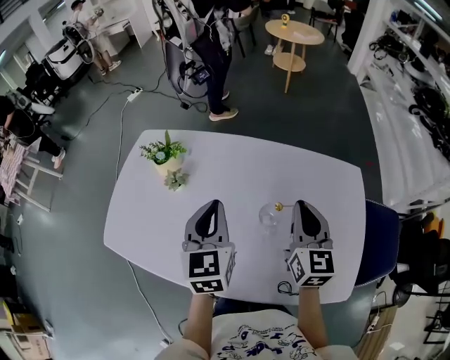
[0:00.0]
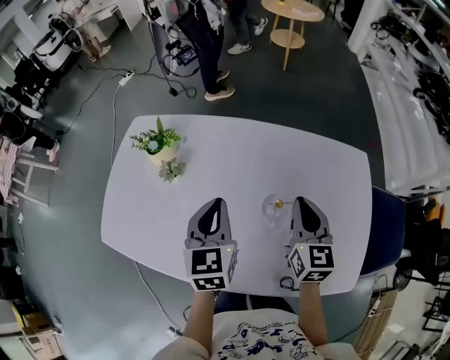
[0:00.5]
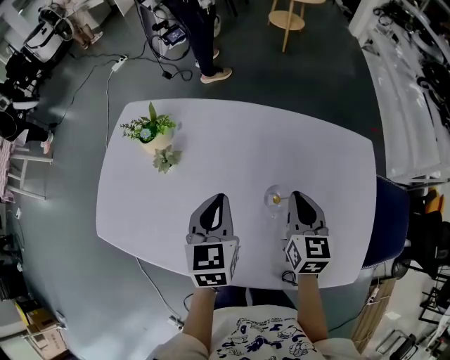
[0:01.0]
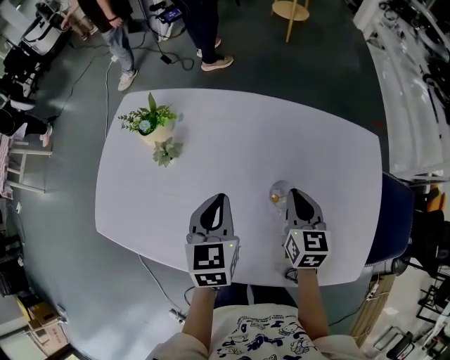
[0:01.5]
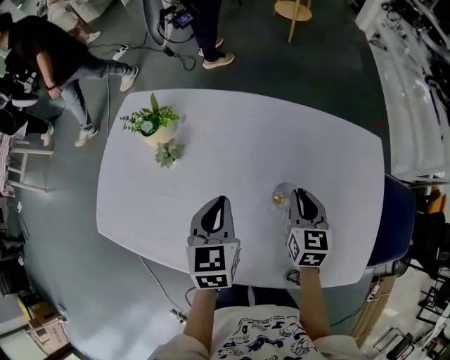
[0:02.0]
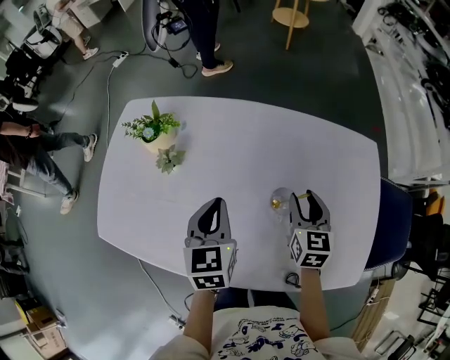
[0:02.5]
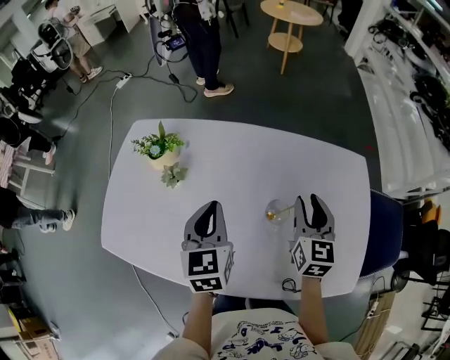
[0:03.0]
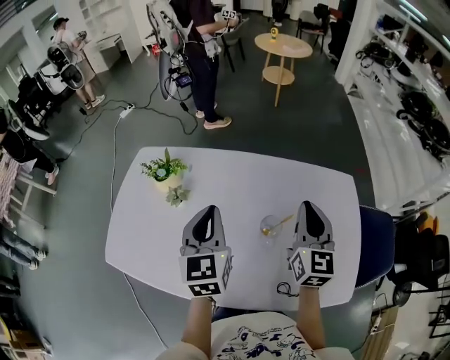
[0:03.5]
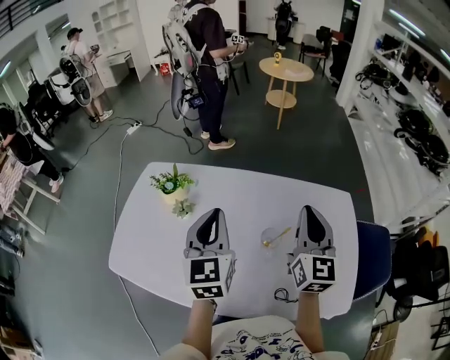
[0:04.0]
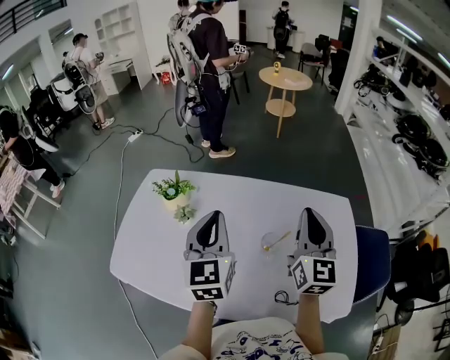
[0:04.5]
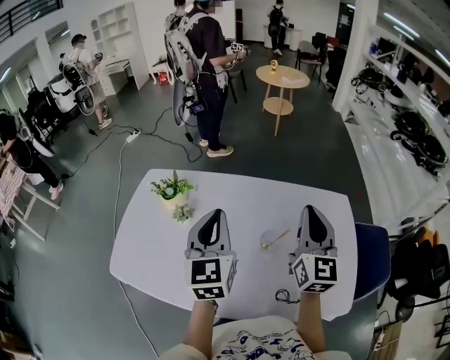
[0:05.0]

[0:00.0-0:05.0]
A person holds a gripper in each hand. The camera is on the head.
0:00.0 to 0:02.5: The two grippers go about 15 cm downward. The right gripper opens its fingers.
0:02.5 to 0:05.0: Both grippers move upward, some 25 cm. The right gripper tips its fingers upward by approximately 30 degrees, and closes its fingers. The left gripper turns by roughly 30 degrees.

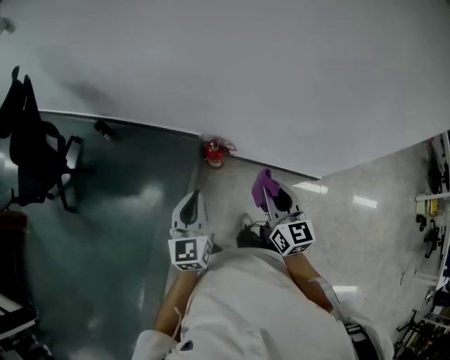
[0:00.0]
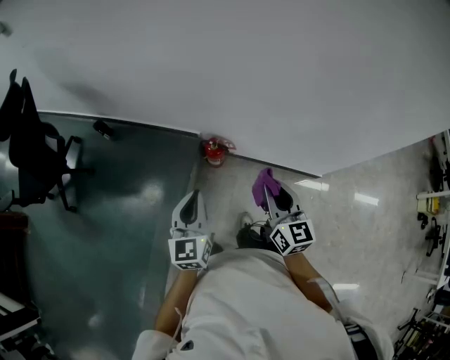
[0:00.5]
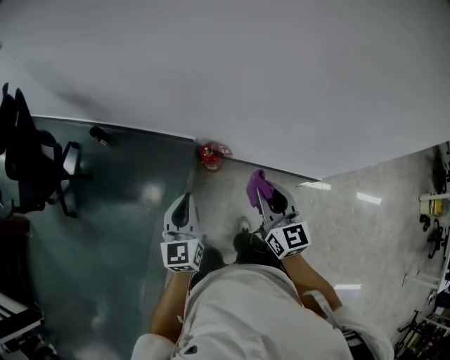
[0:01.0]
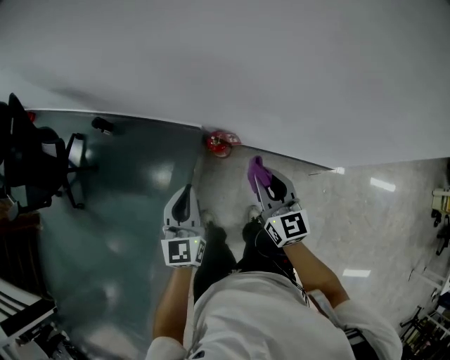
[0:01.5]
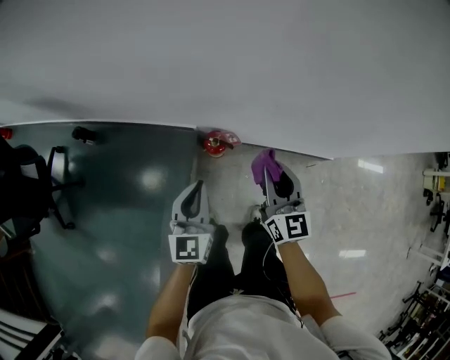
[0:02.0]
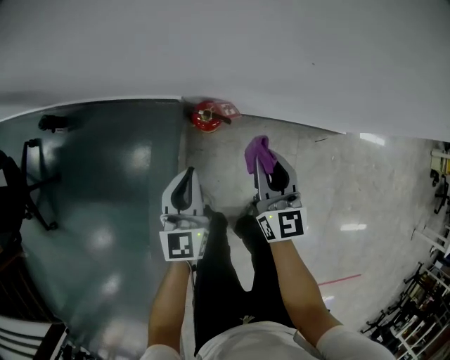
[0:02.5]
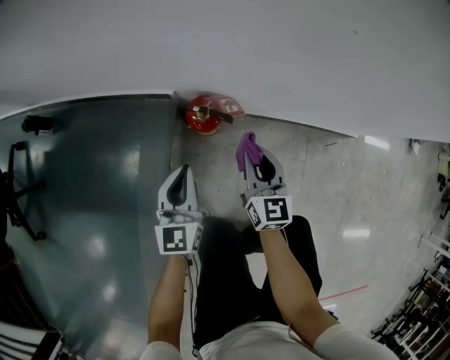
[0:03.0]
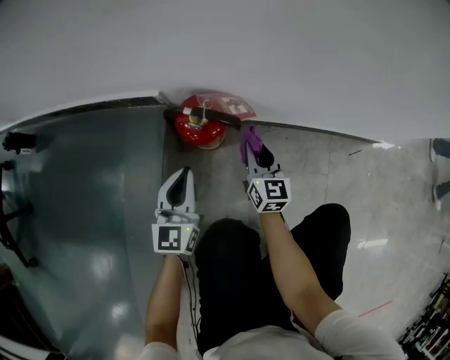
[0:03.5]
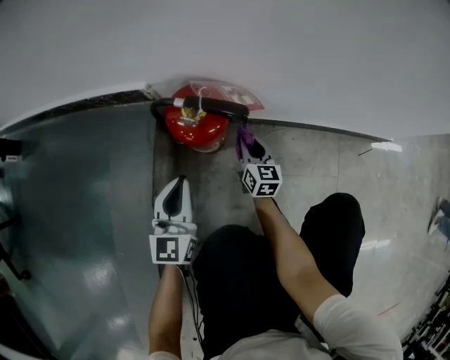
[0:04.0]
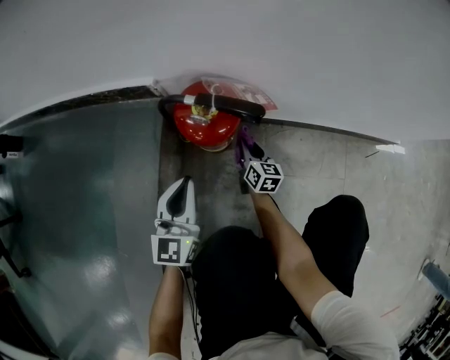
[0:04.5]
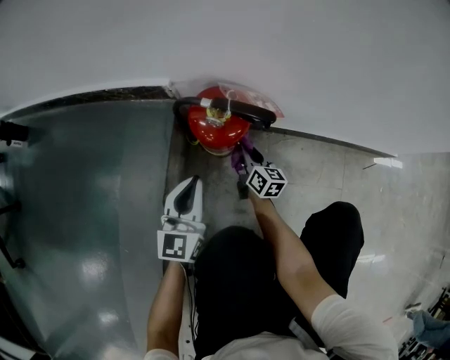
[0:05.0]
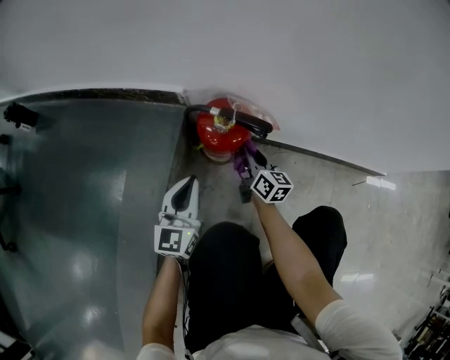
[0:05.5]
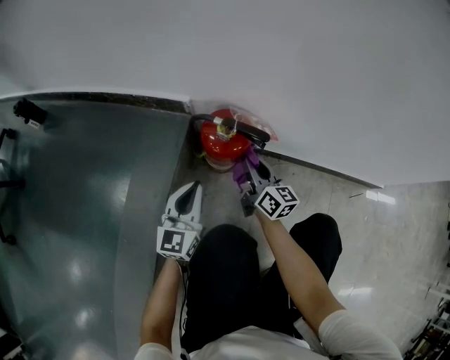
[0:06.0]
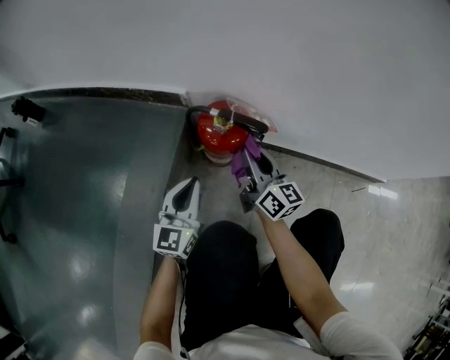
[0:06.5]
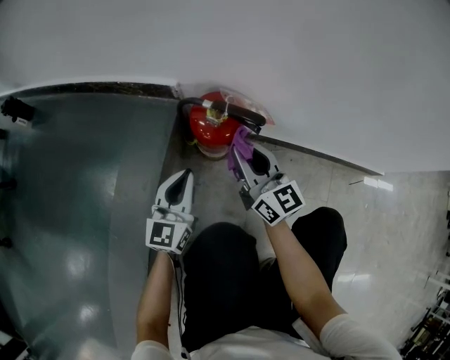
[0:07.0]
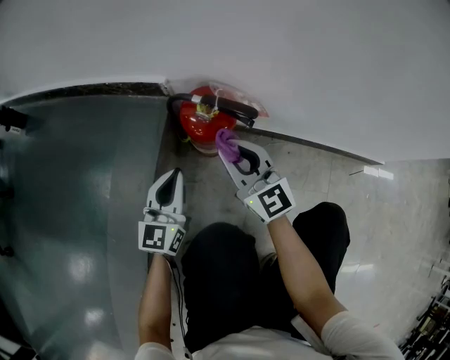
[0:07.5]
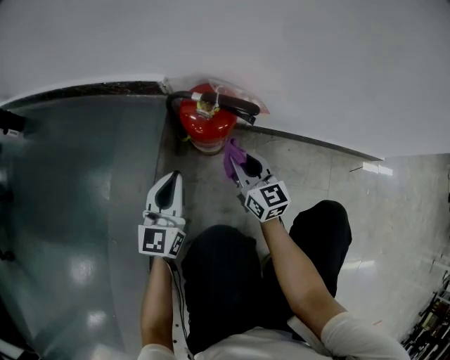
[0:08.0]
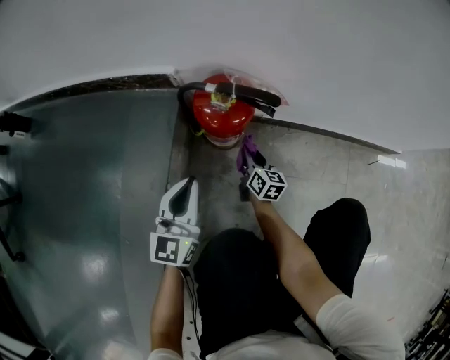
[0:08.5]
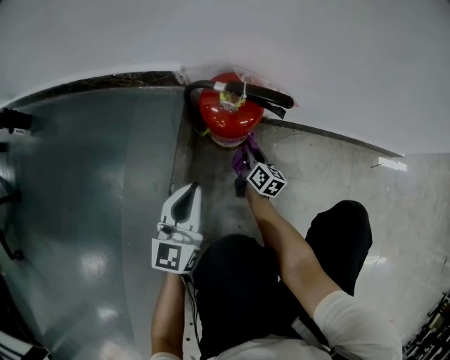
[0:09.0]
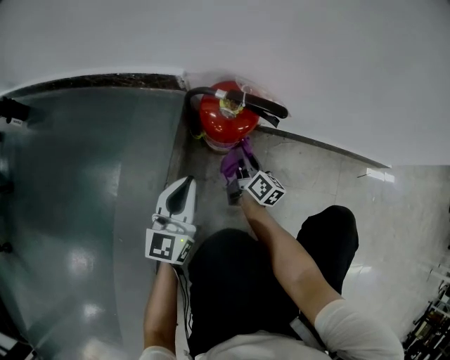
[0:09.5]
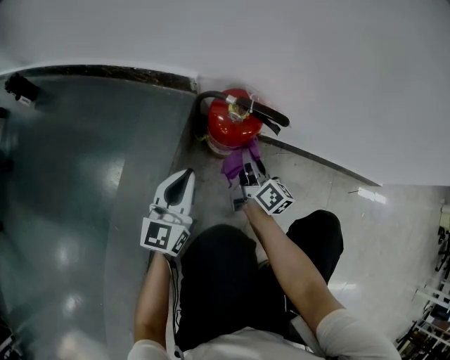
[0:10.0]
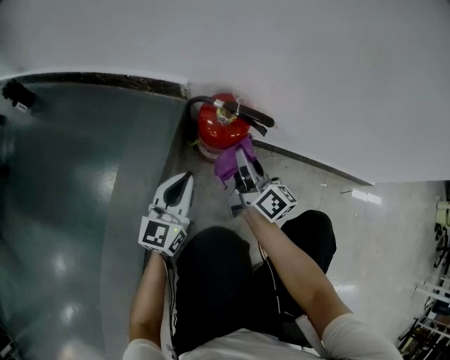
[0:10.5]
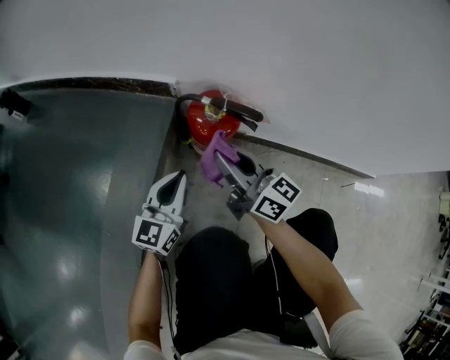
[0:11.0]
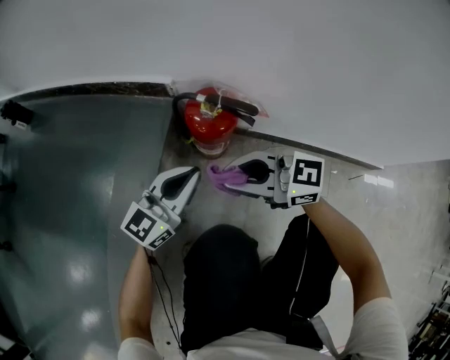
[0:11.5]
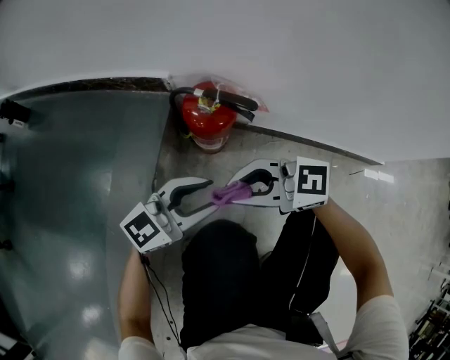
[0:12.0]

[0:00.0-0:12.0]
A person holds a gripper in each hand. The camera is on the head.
0:00.0 to 0:02.0: The two grippers go approximately 20 cm forward and downward.
0:02.0 to 0:04.0: Both grippers travel together downward, roughly 70 cm.
0:04.0 to 0:06.0: The right gripper is displaced upward by about 15 cm, and changes its angle by some 30 degrees.
0:06.0 to 0:08.0: The right gripper travels upward and back again, some 10 cm each way, and swivels approximately 20 degrees.
0:08.0 to 0:10.0: The right gripper goes downward and returns, about 20 cm each way, and changes its angle by roughly 40 degrees.
0:10.0 to 0:12.0: The left gripper ends up about 15 cm from where it was, changes its angle by approximately 50 degrees, and opens its fingers, while the right gripper moves upward, some 15 cm, and turns by approximately 90 degrees.

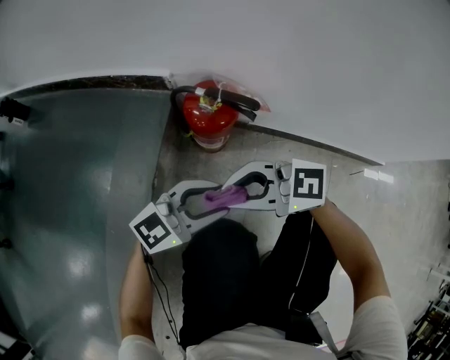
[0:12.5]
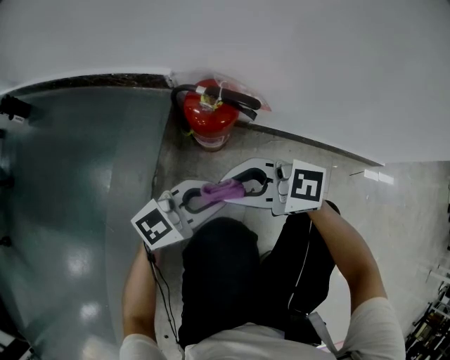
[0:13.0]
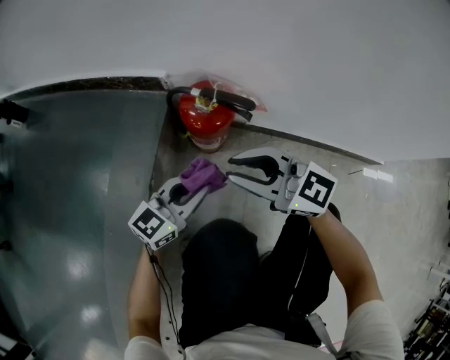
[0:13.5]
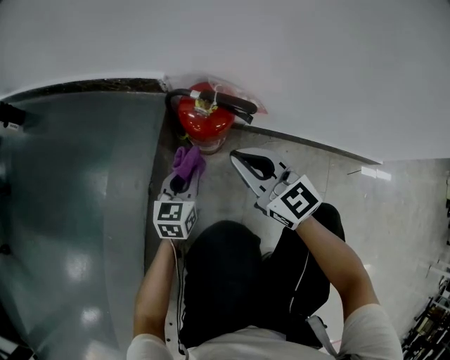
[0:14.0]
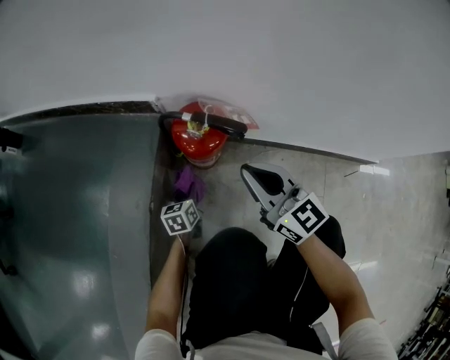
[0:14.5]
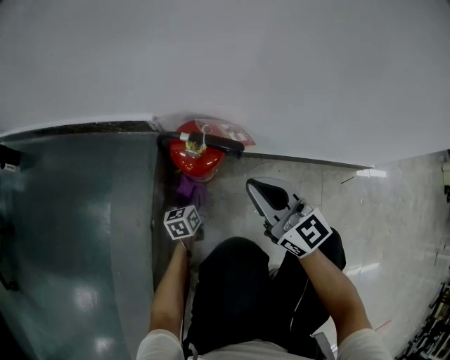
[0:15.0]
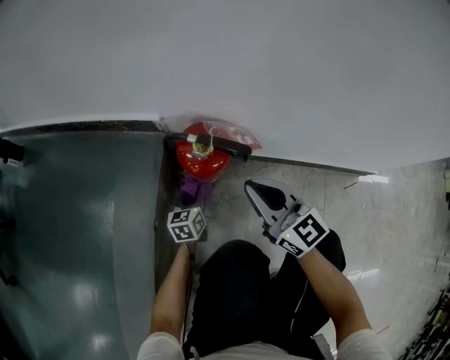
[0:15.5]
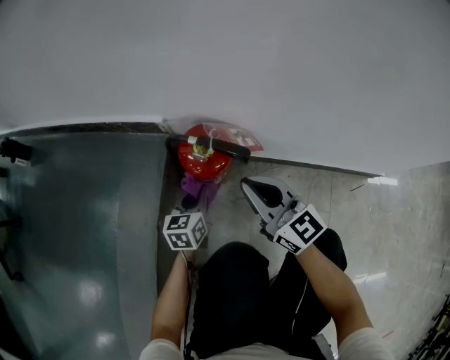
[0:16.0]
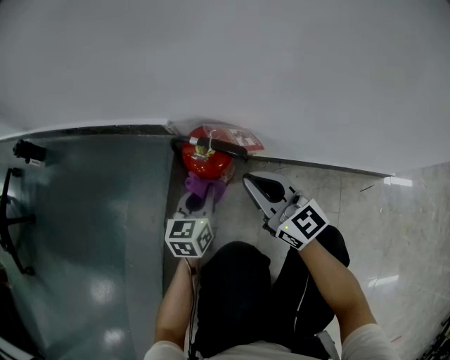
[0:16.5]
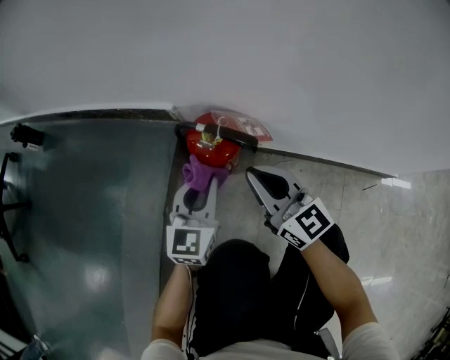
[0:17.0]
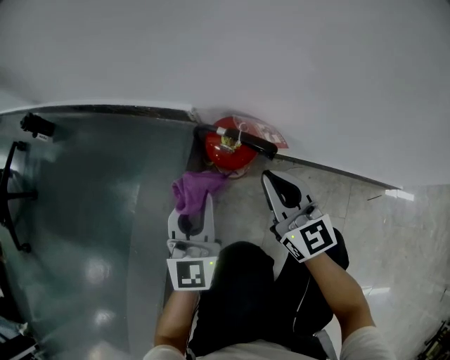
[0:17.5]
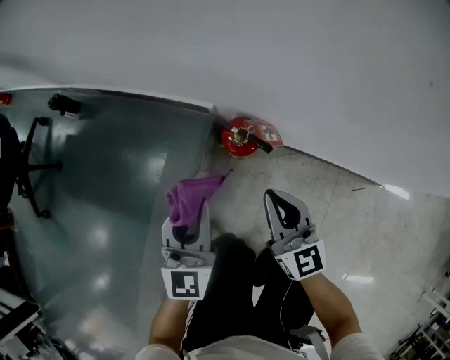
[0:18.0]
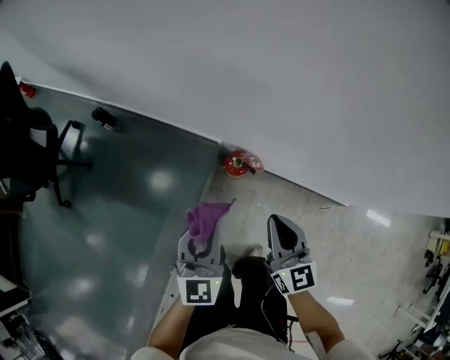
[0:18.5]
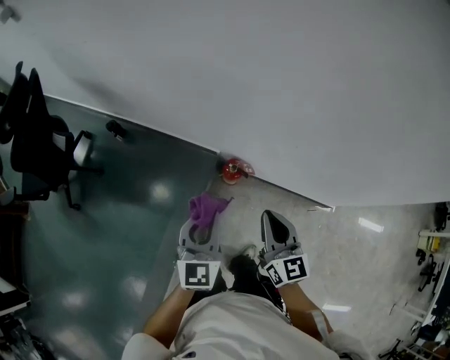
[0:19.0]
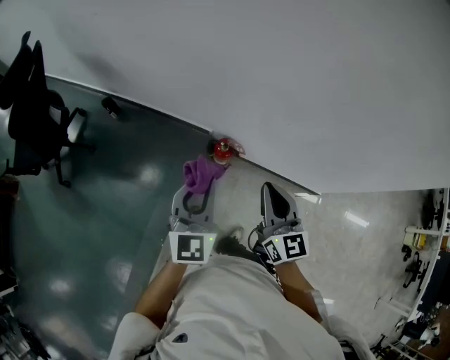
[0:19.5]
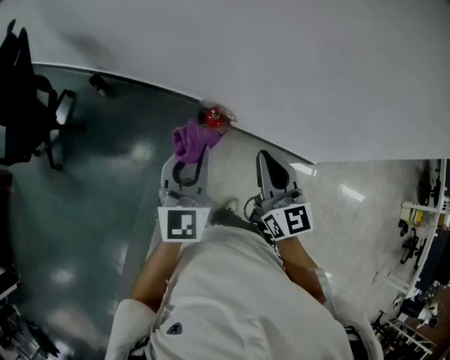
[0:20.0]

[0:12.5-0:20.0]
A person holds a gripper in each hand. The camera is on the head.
0:12.5 to 0:14.5: The left gripper moves downward, some 25 cm, tilts its fingers about 30 degrees downward, and closes its fingers, while the right gripper shifts by roughly 15 cm, and turns by roughly 60 degrees.
0:14.5 to 0:16.5: The left gripper travels upward by approximately 20 cm, and swivels approximately 20 degrees.
0:16.5 to 0:18.0: The right gripper travels upward by about 20 cm, while the left gripper moves upward, some 35 cm, and swivels about 30 degrees.
0:18.0 to 0:20.0: The grippers both shift upward by approximately 50 cm.

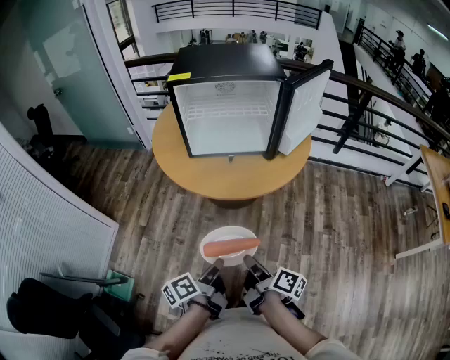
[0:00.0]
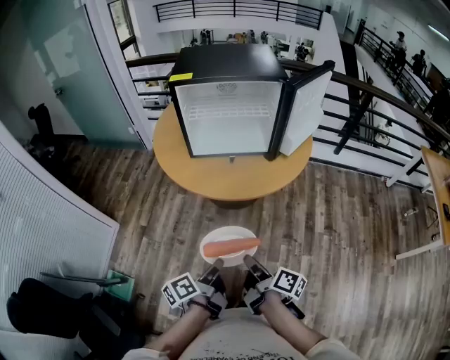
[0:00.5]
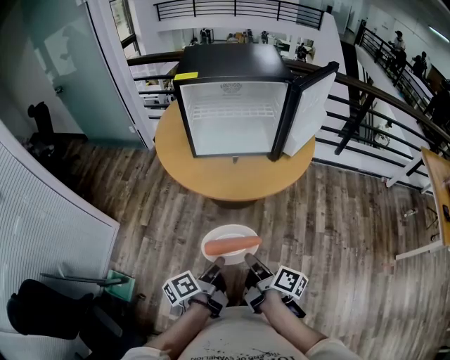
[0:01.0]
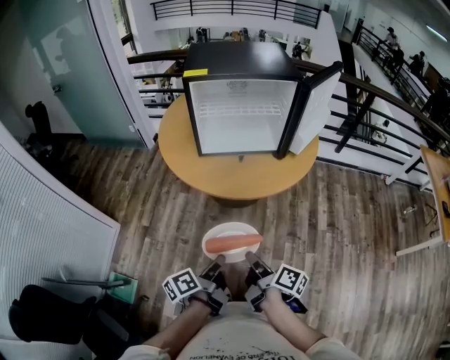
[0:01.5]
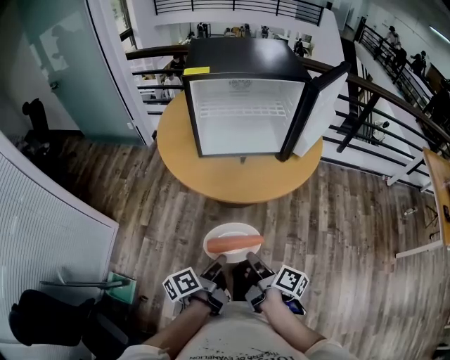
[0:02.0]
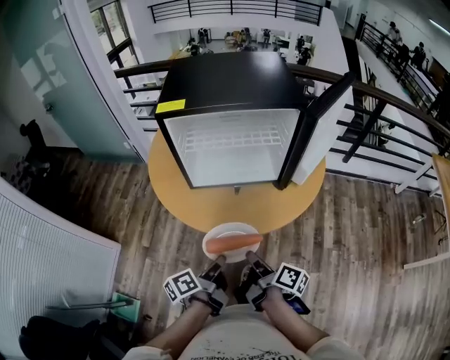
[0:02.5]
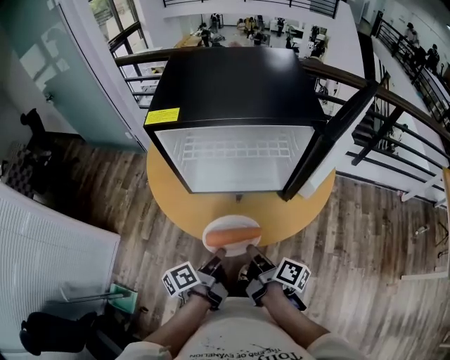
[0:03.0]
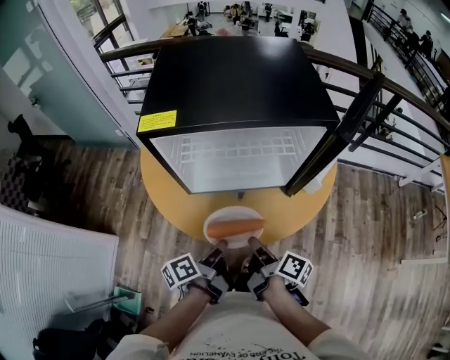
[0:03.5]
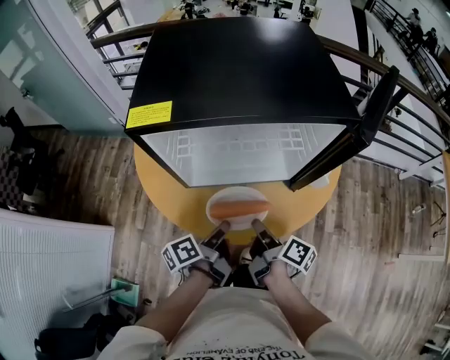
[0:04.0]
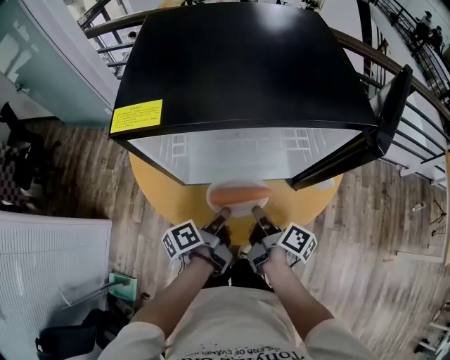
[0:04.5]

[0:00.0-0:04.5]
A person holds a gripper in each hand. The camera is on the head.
0:00.0 to 0:02.0: The right gripper shifts by some 5 cm.
0:02.0 to 0:04.5: The right gripper shifts by approximately 40 cm.
